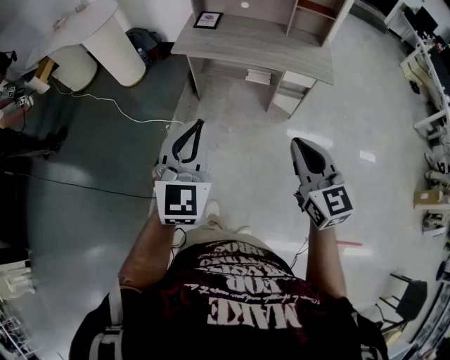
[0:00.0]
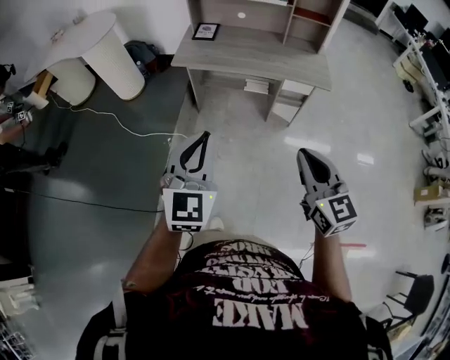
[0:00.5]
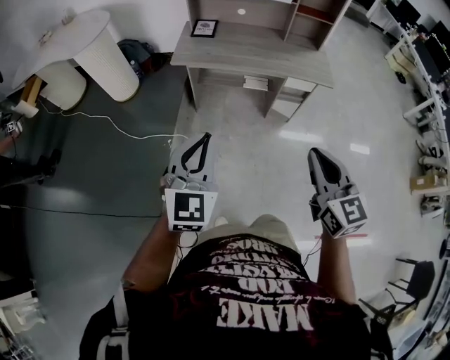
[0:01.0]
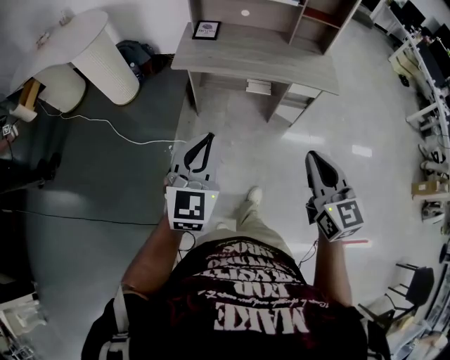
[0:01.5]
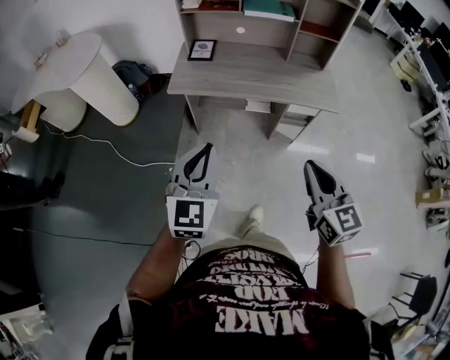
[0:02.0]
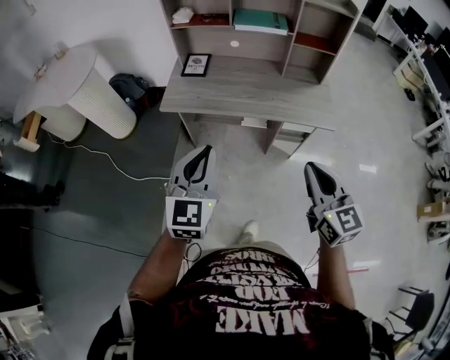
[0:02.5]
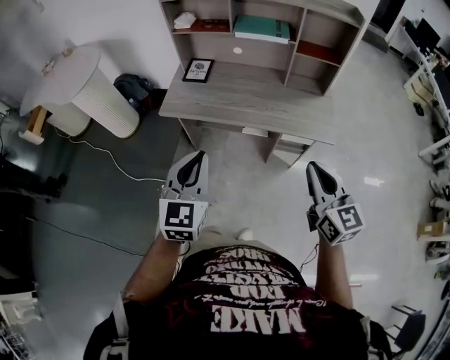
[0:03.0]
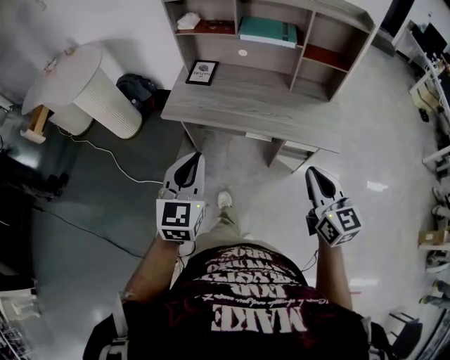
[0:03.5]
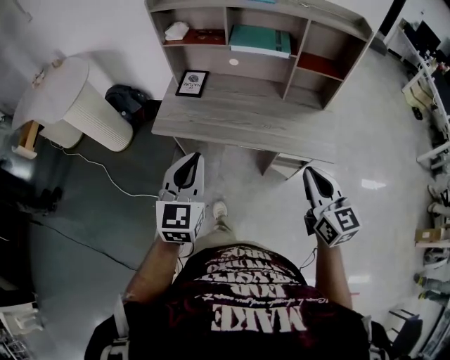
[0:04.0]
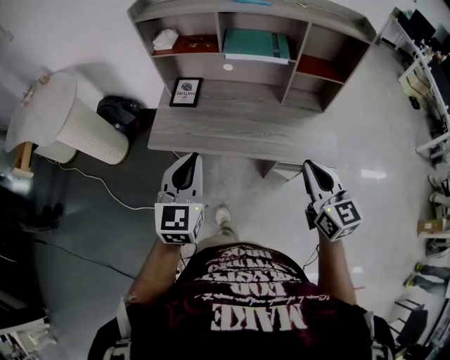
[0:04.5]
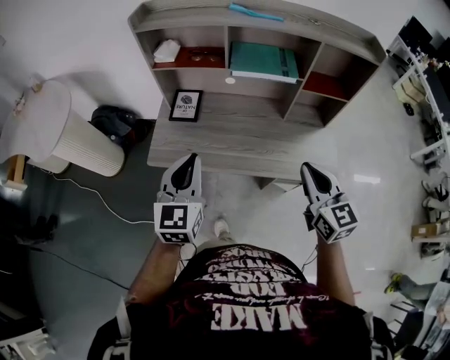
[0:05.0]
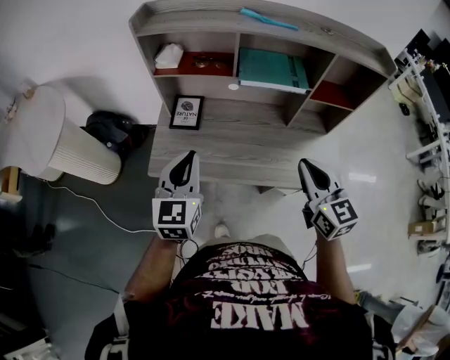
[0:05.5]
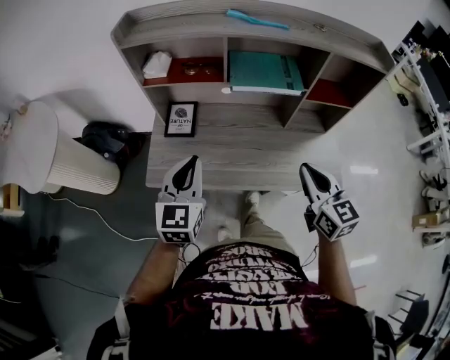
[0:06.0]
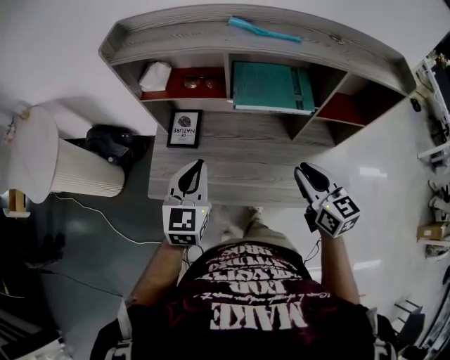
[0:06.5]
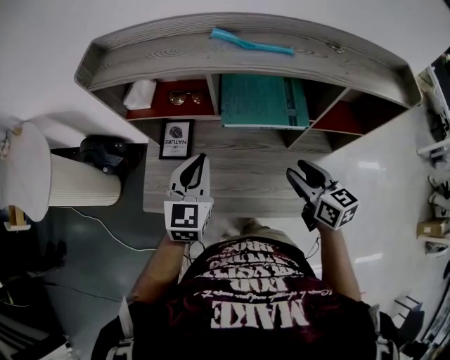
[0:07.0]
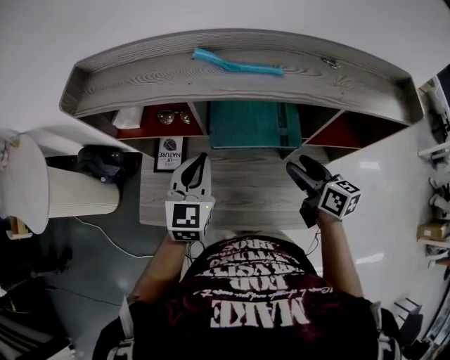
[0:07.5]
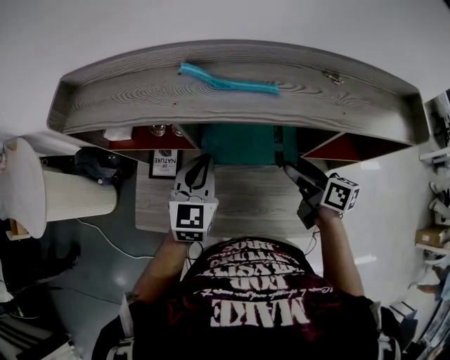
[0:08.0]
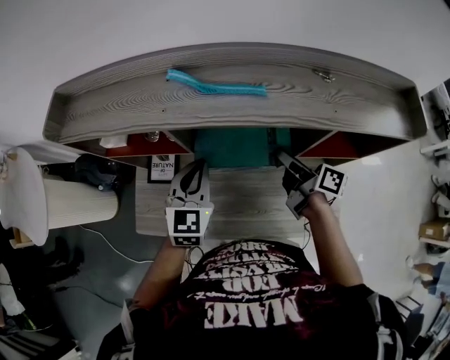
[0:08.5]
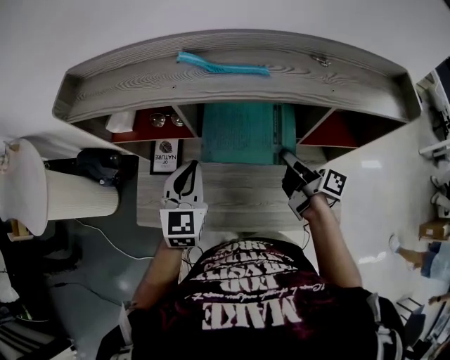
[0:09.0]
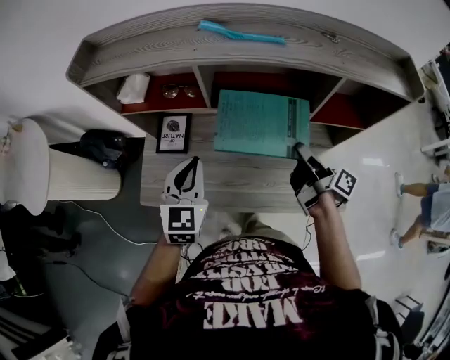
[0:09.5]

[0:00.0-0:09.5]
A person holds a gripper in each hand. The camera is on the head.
0:00.0 to 0:02.0: The two grippers go approximately 15 cm forward.
0:02.0 to 0:04.0: Both grippers travel together forward and to the right, approximately 25 cm.
0:04.0 to 0:05.5: Both grippers move forward, about 20 cm.
0:05.5 to 0:07.5: Both grippers move forward and to the right, about 25 cm. The right gripper turns by approximately 30 degrees, and opens up.
0:07.5 to 0:09.5: The right gripper moves about 10 cm forward and comes back, and twists some 40 degrees clockwise, seen from behind. The left gripper is displaced backward by about 5 cm.

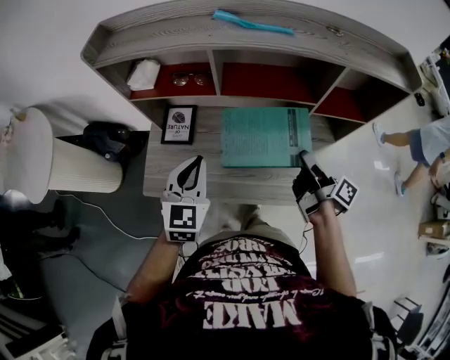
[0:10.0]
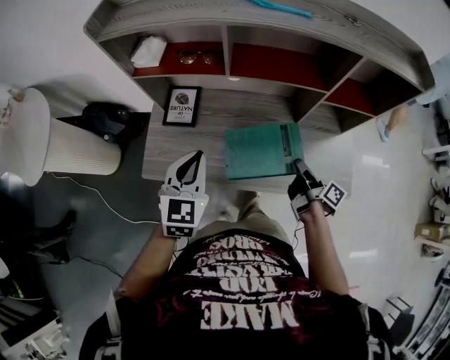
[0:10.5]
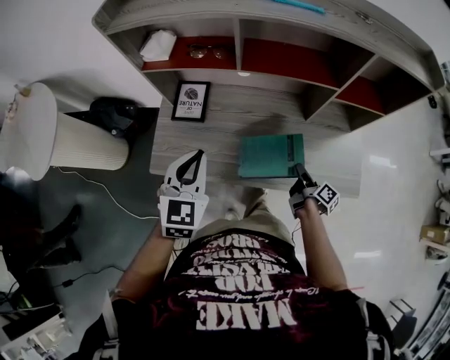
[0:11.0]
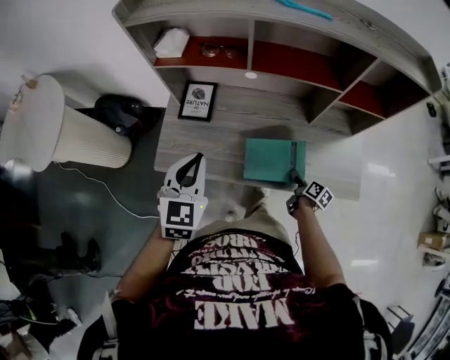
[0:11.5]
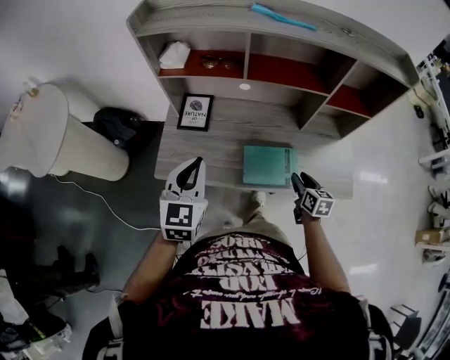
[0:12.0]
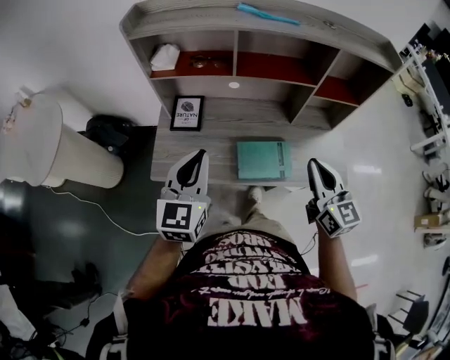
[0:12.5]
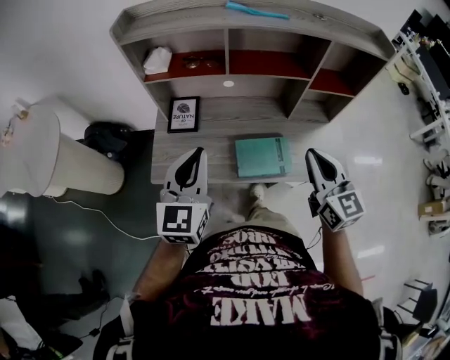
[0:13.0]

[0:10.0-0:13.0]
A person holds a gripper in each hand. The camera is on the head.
0:10.0 to 0:11.5: The right gripper is displaced downward by about 30 cm, and points its fingers approximately 40 degrees further downward; the left gripper goes about 10 cm to the left and backward.
0:11.5 to 0:13.0: The left gripper goes some 10 cm upward, and swivels roughly 20 degrees, while the right gripper is displaced upward by roughly 40 cm, rolls counterclockwise, seen from behind, by some 60 degrees, and closes.

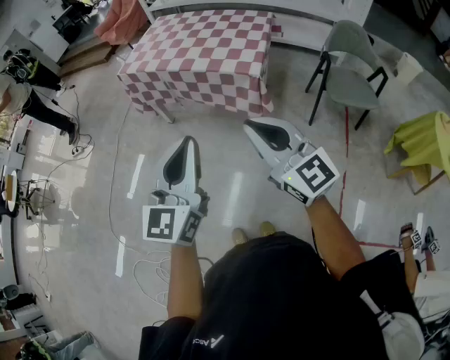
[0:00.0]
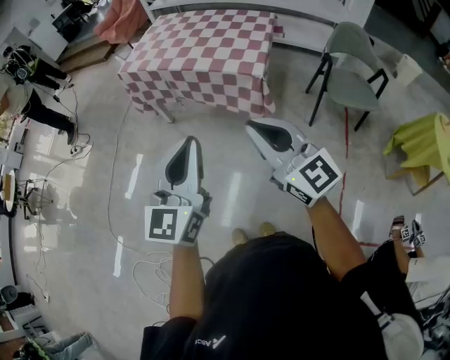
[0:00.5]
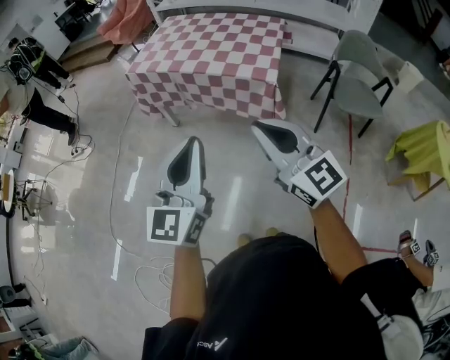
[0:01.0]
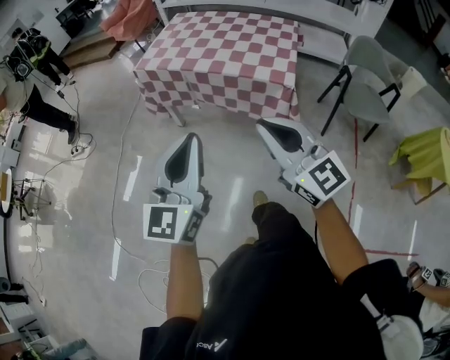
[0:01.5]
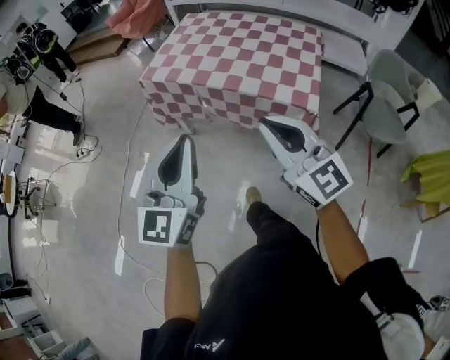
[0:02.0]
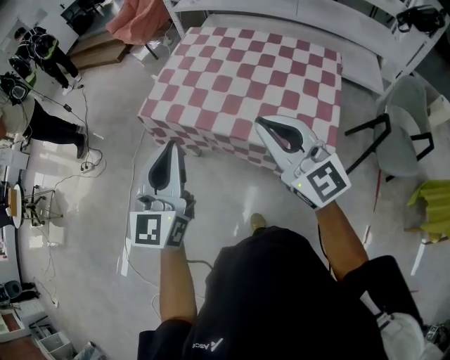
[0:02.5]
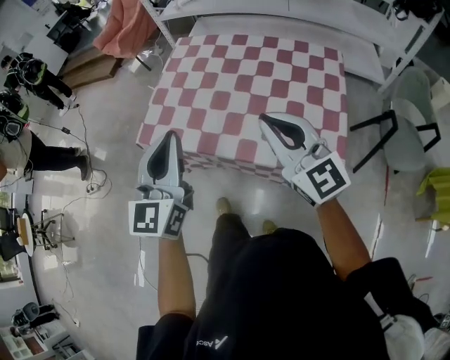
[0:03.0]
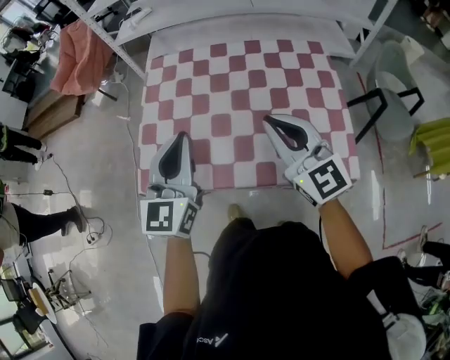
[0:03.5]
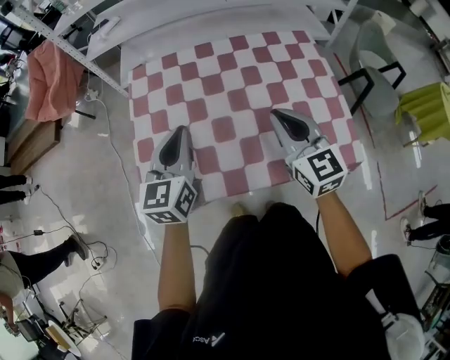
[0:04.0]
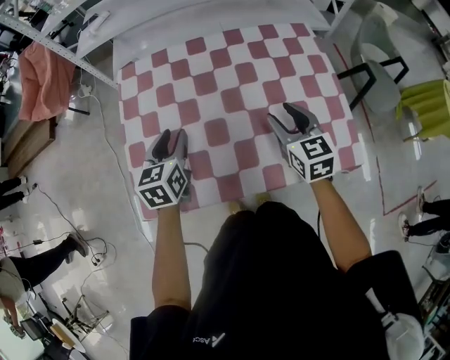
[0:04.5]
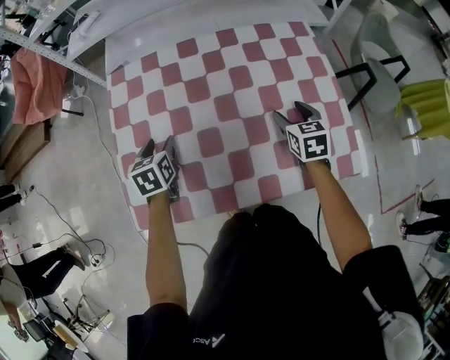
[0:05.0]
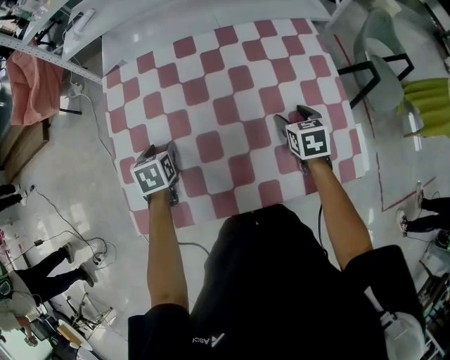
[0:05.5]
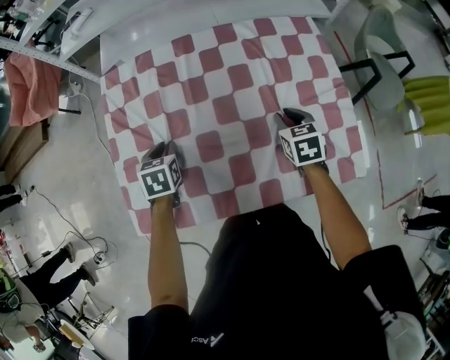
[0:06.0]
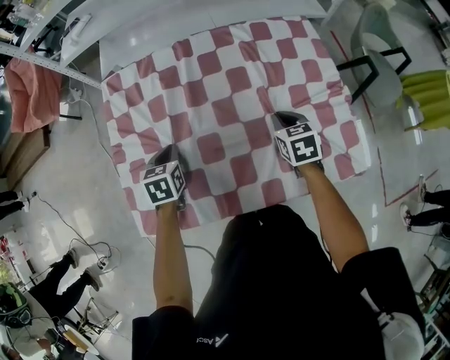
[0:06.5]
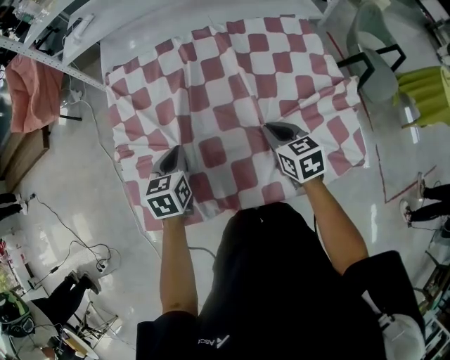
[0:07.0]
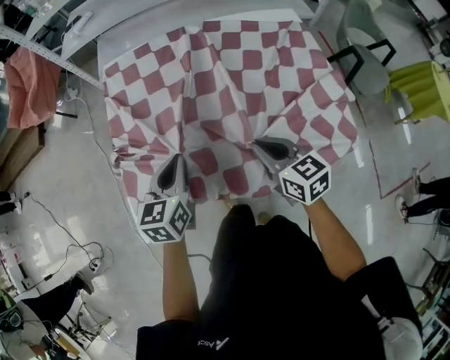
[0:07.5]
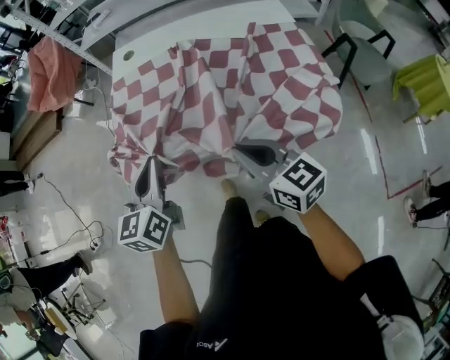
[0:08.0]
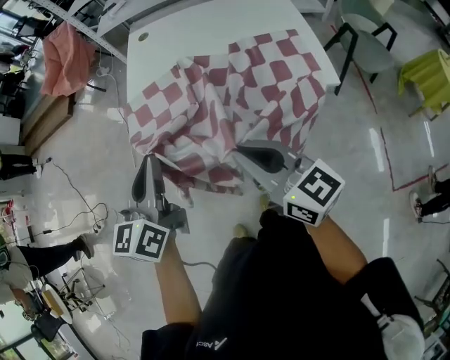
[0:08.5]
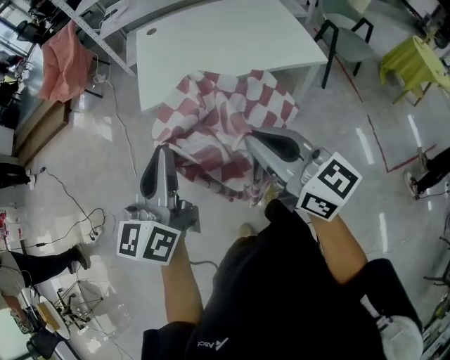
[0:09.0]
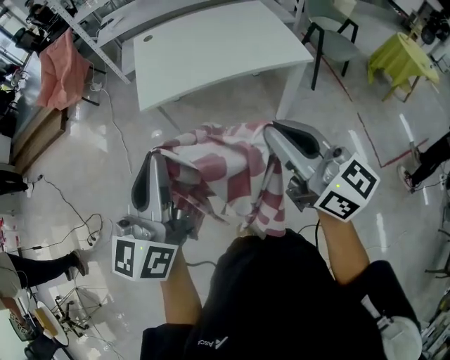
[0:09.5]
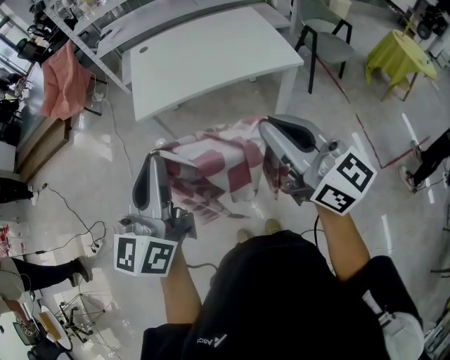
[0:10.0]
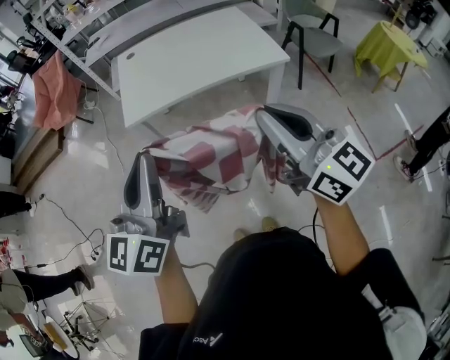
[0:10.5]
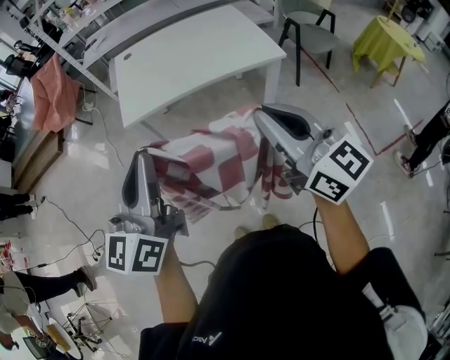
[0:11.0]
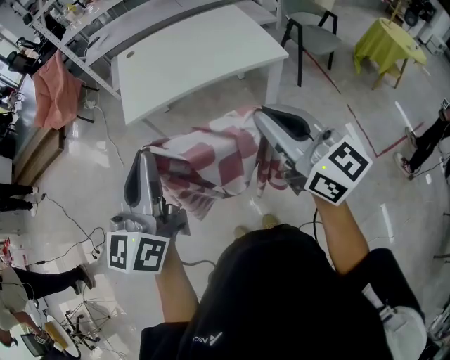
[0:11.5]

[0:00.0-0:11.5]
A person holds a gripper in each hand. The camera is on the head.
0:00.0 to 0:02.0: Both grippers travel together forward and to the left, some 30 cm.
0:02.0 to 0:04.0: The pair of grippers is taken some 60 cm. The left gripper turns by about 30 degrees, while the right gripper turns by roughly 40 degrees.
0:04.0 to 0:06.0: The right gripper heads downward, forward and to the right, covering some 25 cm, angles its fingers downward, by approximately 40 degrees, and opens and closes again. Meanwhile the left gripper shifts approximately 25 cm downward and forward, points its fingers roughly 40 degrees further downward, and opens, then closes once more.
0:06.0 to 0:07.5: The right gripper moves backward, to the left and upward, roughly 25 cm, and rotates roughly 30 degrees; the left gripper heads backward and upward, covering approximately 20 cm, and swivels some 30 degrees.
0:07.5 to 0:09.5: The pair of grippers is taken backward, approximately 60 cm. Both grippers move upward, about 25 cm. The right gripper points its fingers about 30 degrees further upward, while the left gripper tilts its fingers about 40 degrees upward.
0:09.5 to 0:11.5: The left gripper changes place by some 5 cm. Meanwhile the right gripper travels to the right by approximately 5 cm.

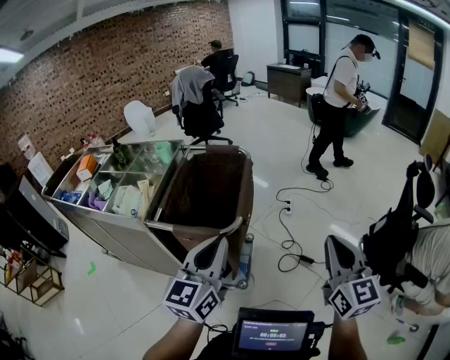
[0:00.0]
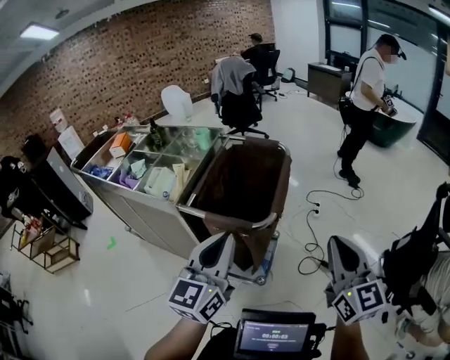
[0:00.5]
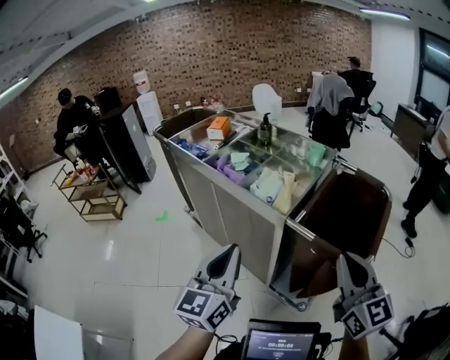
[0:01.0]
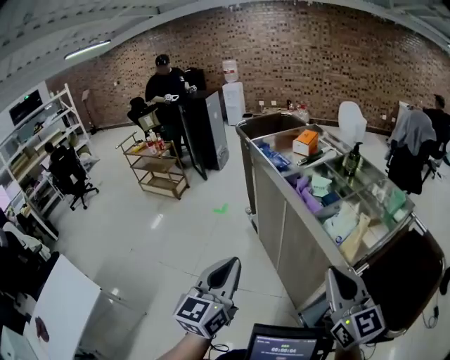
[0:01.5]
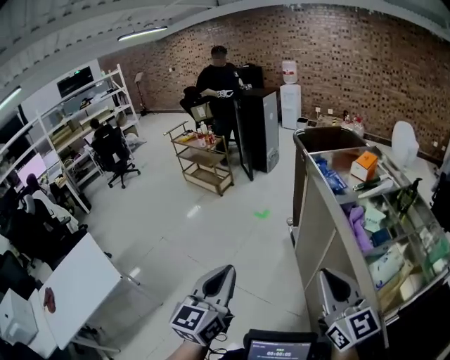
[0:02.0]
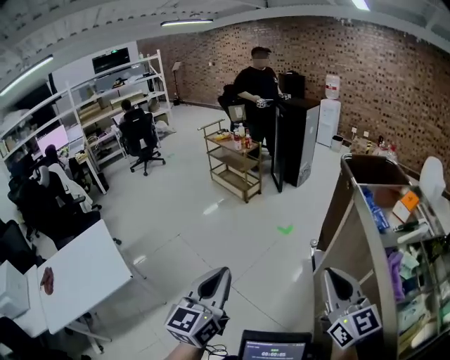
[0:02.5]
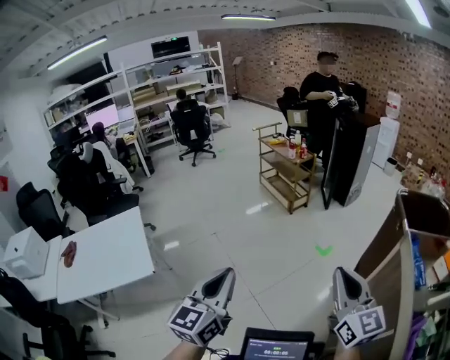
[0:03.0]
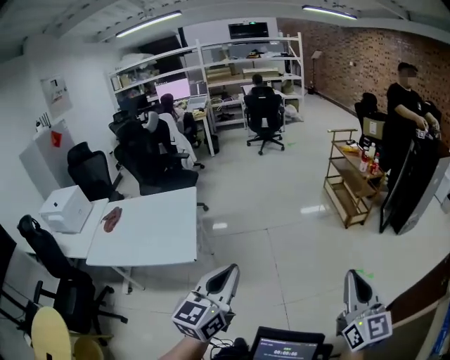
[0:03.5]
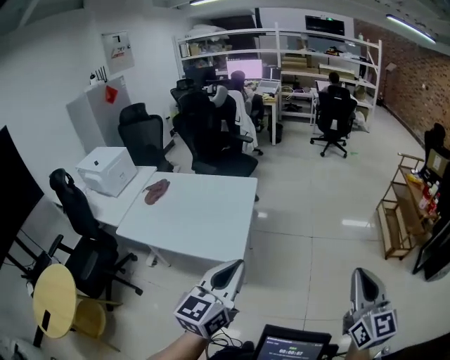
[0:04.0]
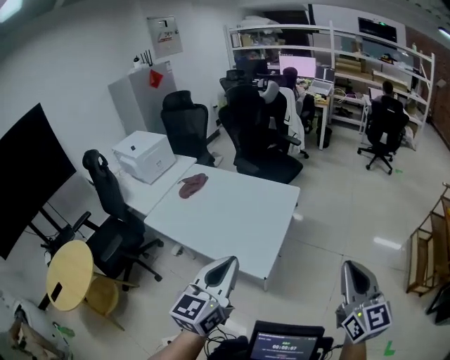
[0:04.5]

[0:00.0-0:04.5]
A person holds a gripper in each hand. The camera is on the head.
0:00.0 to 0:02.0: The pair of grippers is taken roughly 80 cm. The left gripper swivels some 70 degrees; the right gripper swivels approximately 80 degrees.
0:02.0 to 0:04.5: The pair of grippers is taken roughly 1 m. The left gripper changes its angle by roughly 80 degrees. The right gripper rotates approximately 80 degrees.
